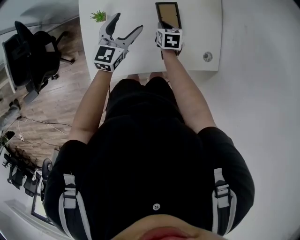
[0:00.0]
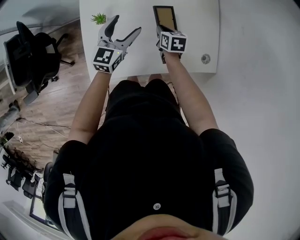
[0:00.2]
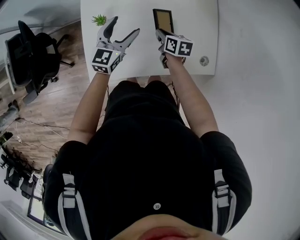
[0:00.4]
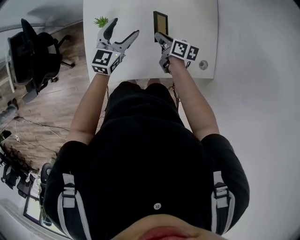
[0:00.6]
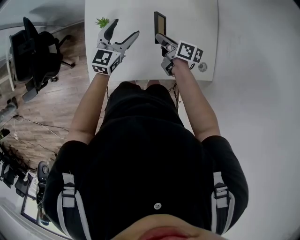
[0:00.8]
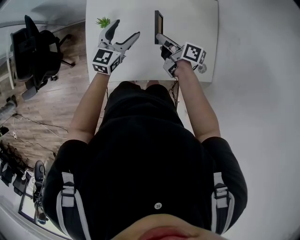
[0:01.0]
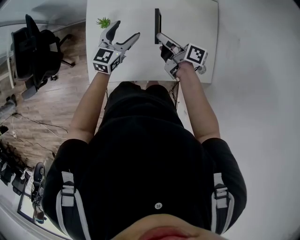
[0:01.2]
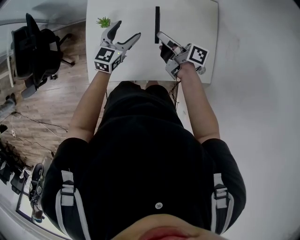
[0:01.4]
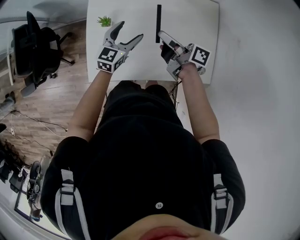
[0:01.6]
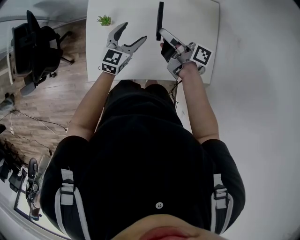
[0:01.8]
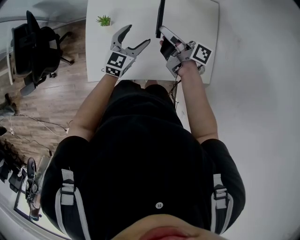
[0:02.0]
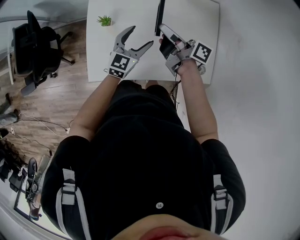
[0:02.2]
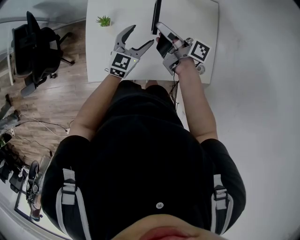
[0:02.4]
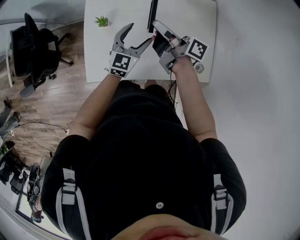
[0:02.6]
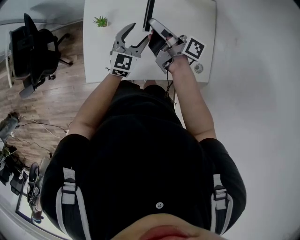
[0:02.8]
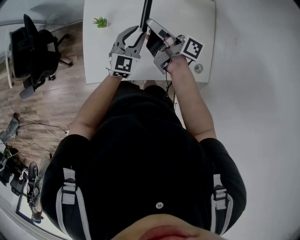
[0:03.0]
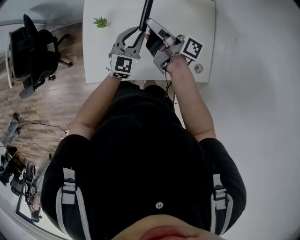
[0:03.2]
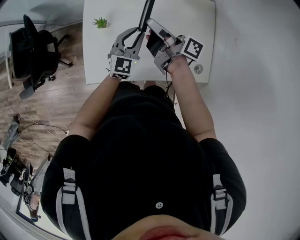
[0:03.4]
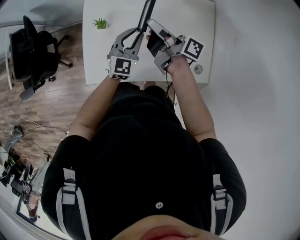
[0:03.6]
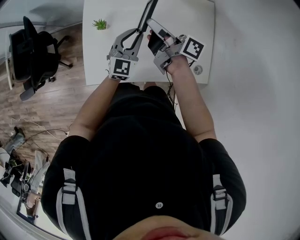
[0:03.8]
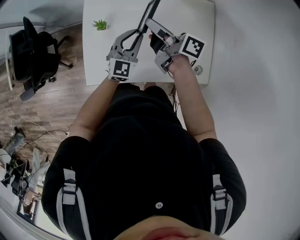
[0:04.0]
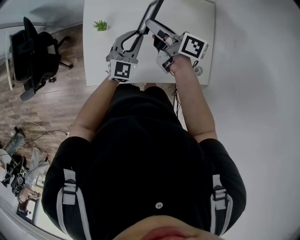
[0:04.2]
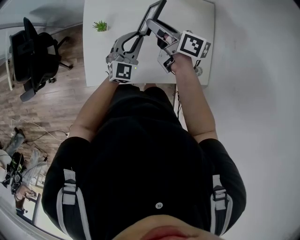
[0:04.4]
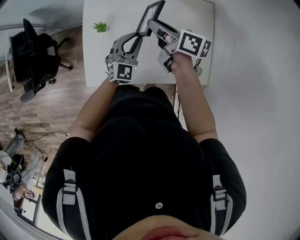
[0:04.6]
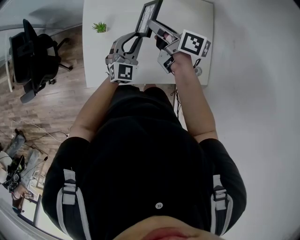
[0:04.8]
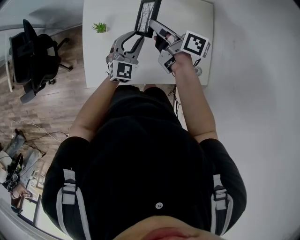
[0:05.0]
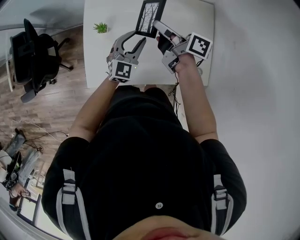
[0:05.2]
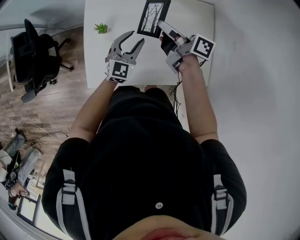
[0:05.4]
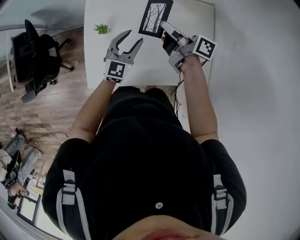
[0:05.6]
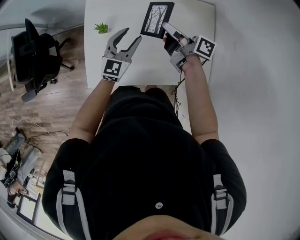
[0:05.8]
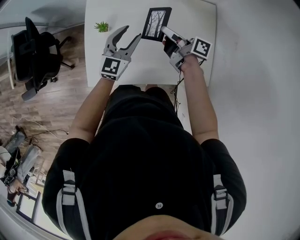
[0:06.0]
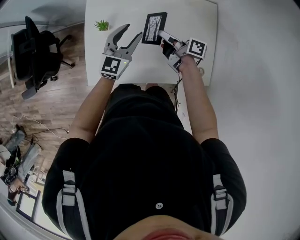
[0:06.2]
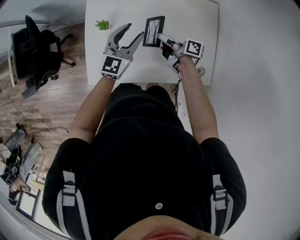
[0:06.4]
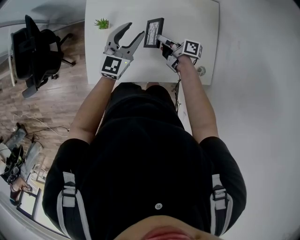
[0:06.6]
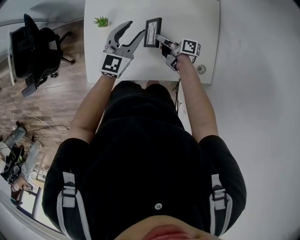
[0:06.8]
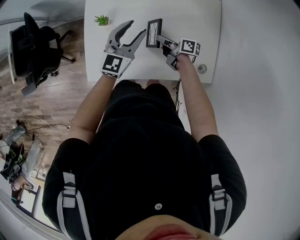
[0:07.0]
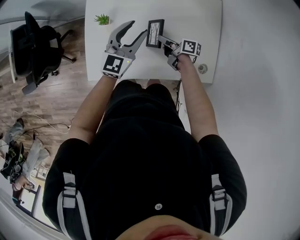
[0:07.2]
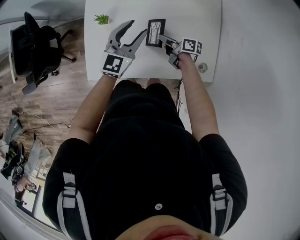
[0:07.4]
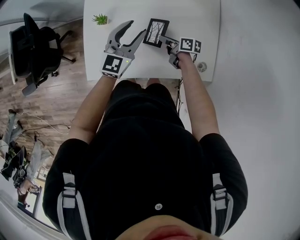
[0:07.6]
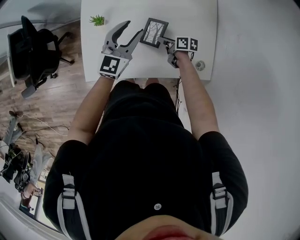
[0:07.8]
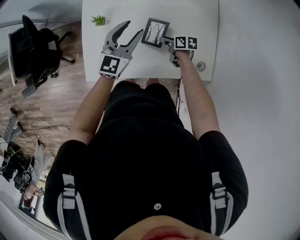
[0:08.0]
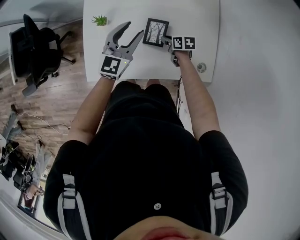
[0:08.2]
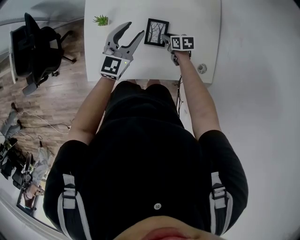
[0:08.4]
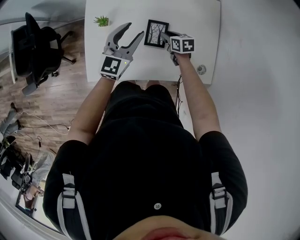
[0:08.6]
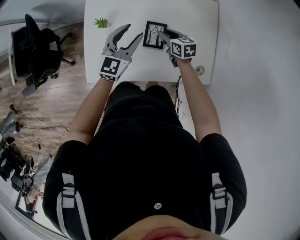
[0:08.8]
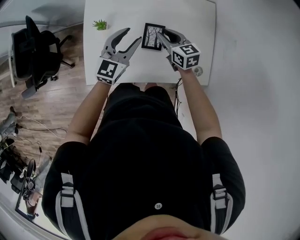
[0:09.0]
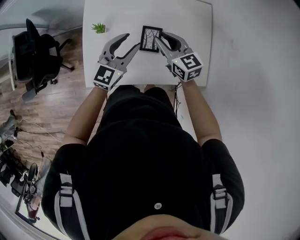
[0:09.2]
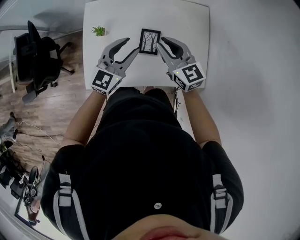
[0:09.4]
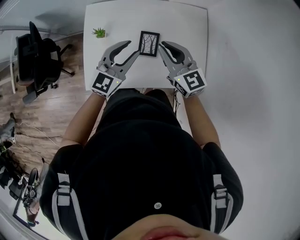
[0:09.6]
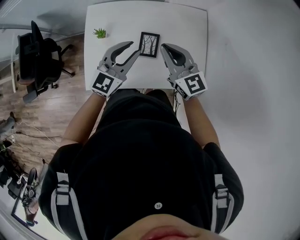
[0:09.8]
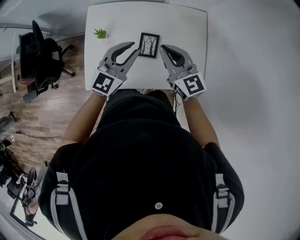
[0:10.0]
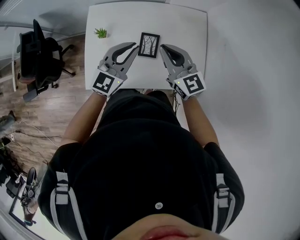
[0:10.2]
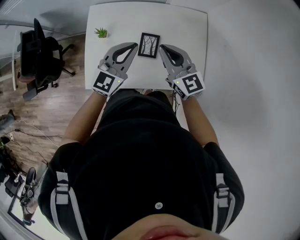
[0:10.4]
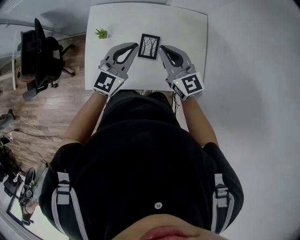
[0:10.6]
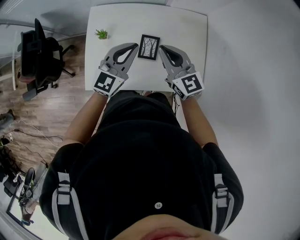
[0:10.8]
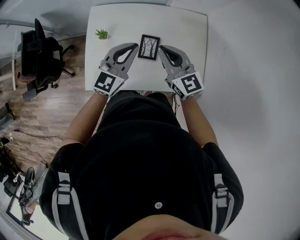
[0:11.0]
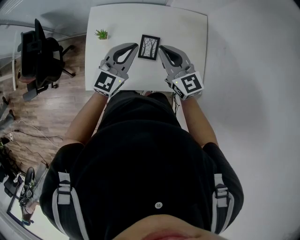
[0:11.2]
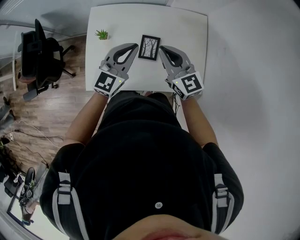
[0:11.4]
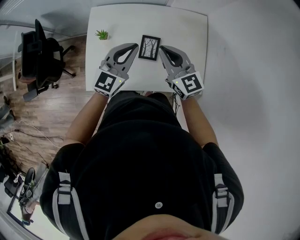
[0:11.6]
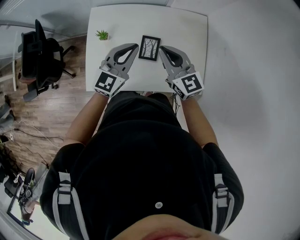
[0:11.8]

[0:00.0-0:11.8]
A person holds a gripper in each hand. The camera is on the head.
0:00.0 to 0:01.4: The right gripper is displaced upward by approximately 20 cm, and points its fingers roughly 50 degrees further upward.
0:01.4 to 0:03.0: The right gripper heads upward, covering some 5 cm. The left gripper heads to the right, covering some 5 cm, and closes its fingers.
0:03.0 to 0:04.4: The right gripper turns by about 30 degrees.
0:04.4 to 0:06.0: The right gripper heads downward and to the right, covering about 10 cm. The left gripper opens up.
0:06.0 to 0:07.4: The right gripper moves downward, about 15 cm.
0:07.4 to 0:08.8: The right gripper shifts by approximately 5 cm, and rotates approximately 40 degrees.
0:08.8 to 0:10.4: The left gripper moves upward and backward, about 10 cm, and closes up, while the right gripper shifts about 25 cm upward, and points its fingers roughly 30 degrees further upward.
0:10.4 to 0:11.8: Both grippers stay put.

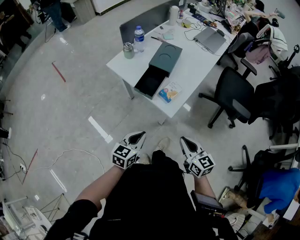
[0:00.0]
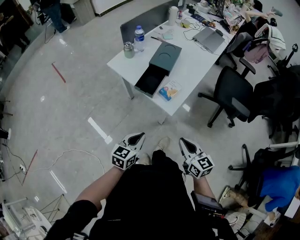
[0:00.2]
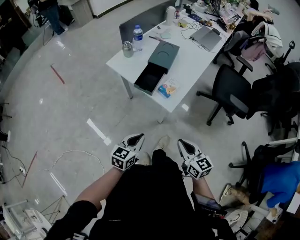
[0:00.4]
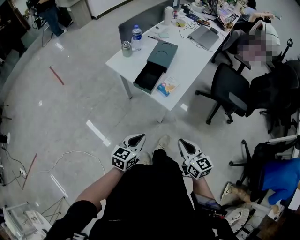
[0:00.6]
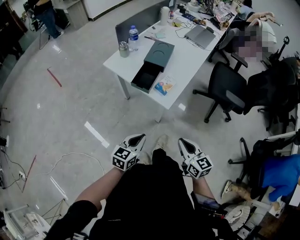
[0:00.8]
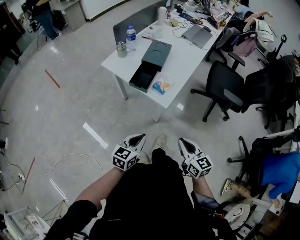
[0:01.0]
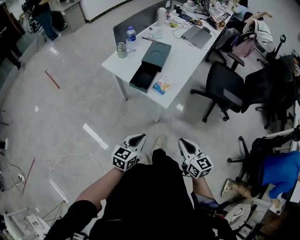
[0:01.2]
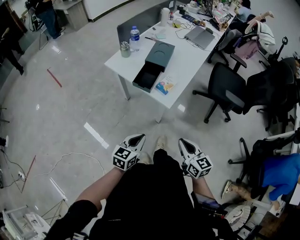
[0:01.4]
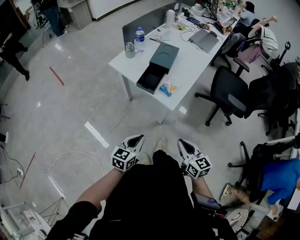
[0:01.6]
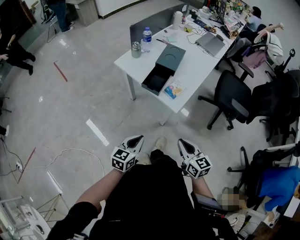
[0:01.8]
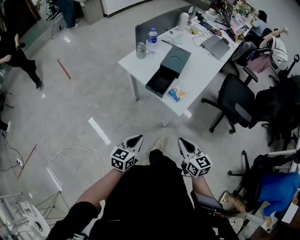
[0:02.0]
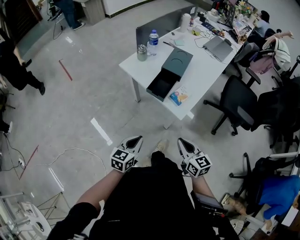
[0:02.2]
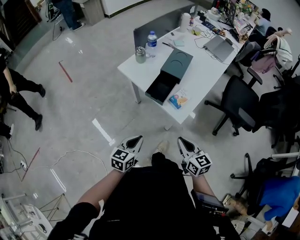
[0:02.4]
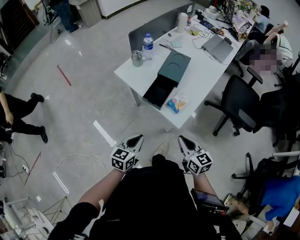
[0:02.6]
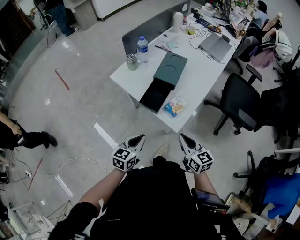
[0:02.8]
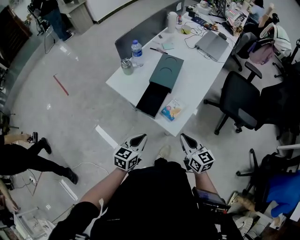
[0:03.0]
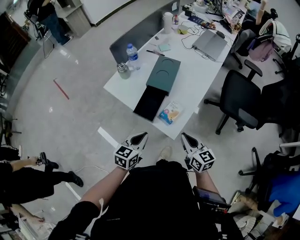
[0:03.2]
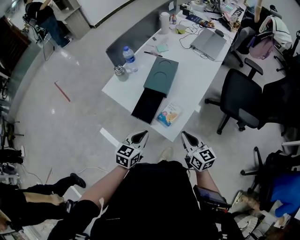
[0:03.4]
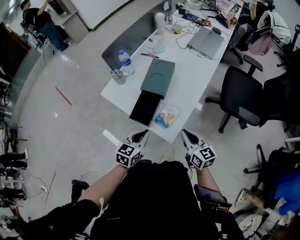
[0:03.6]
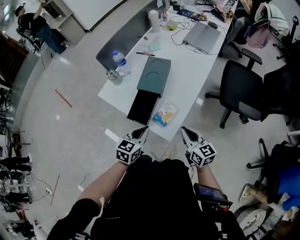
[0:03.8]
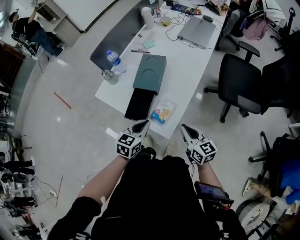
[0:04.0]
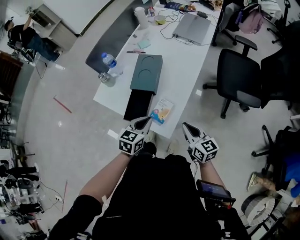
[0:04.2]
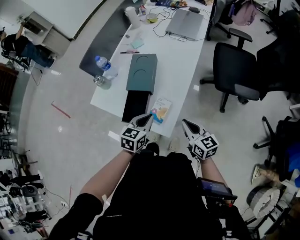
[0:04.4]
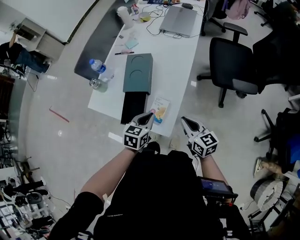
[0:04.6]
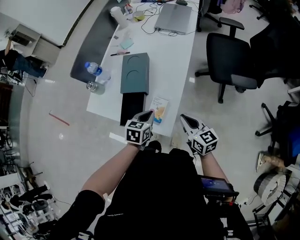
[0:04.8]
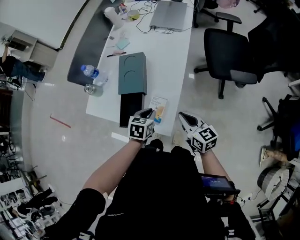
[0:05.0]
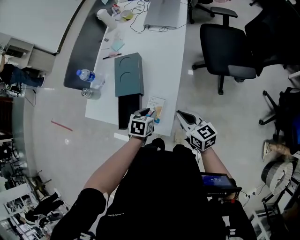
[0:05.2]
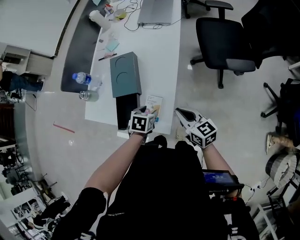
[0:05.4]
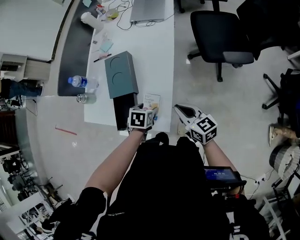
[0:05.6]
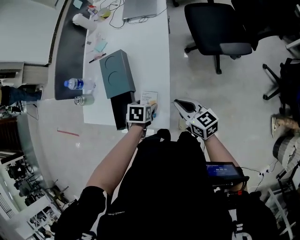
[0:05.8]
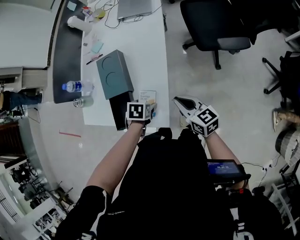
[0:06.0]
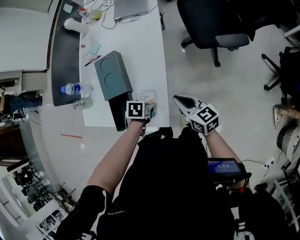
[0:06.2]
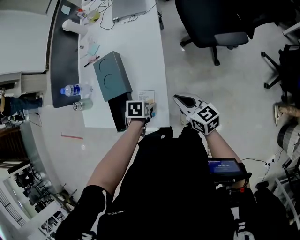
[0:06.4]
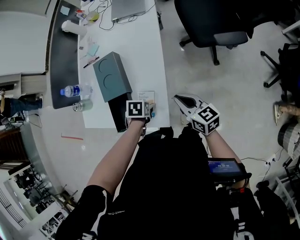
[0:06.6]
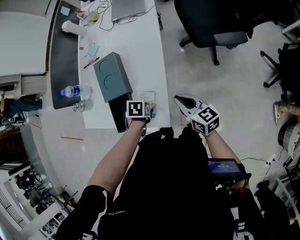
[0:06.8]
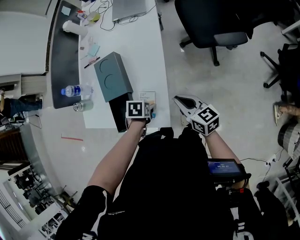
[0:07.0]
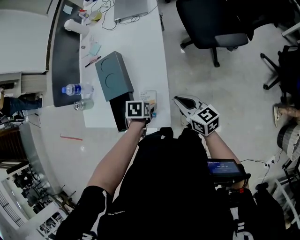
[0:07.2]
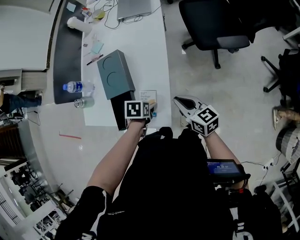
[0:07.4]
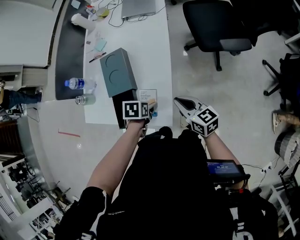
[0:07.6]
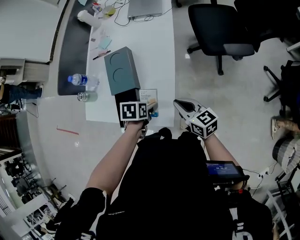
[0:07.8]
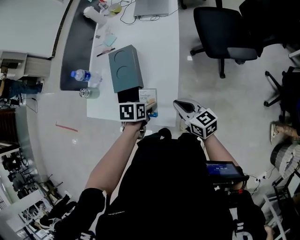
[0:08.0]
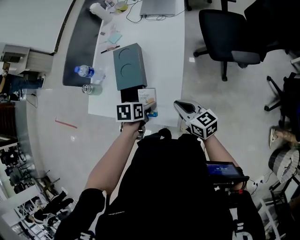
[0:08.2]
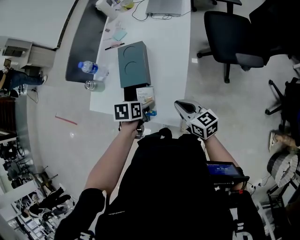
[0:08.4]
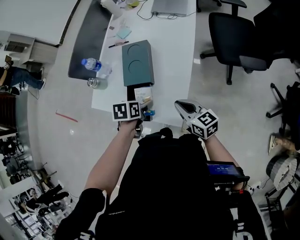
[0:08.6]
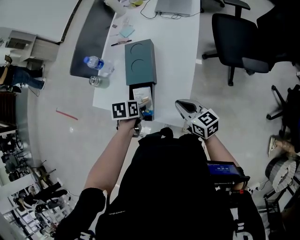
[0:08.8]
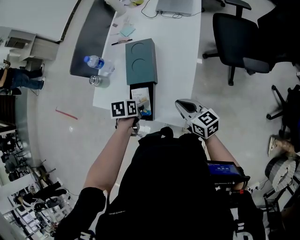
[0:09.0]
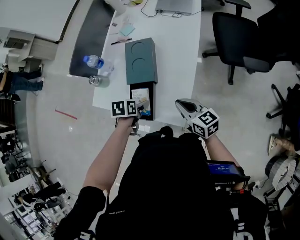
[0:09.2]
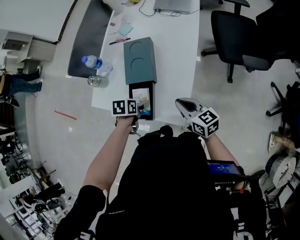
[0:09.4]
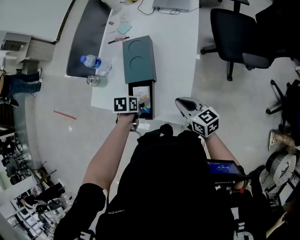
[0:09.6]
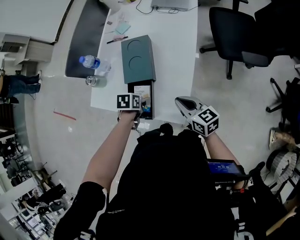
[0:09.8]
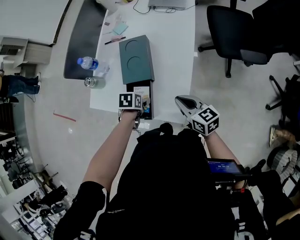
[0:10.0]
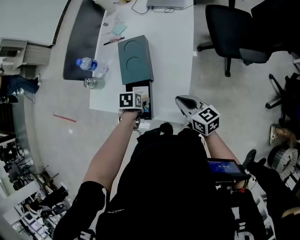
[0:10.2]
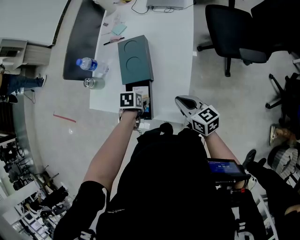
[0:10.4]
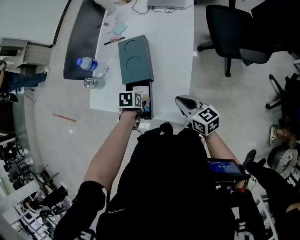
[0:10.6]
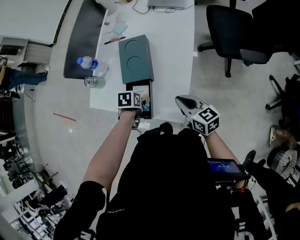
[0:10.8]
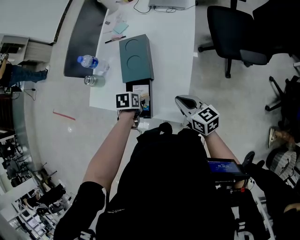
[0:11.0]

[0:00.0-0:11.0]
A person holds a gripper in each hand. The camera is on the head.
0:00.0 to 0:01.6: Both grippers move backward, approximately 10 cm.
0:01.6 to 0:03.2: Both grippers move forward, some 20 cm.
0:03.2 to 0:04.8: The left gripper shifts some 15 cm forward and to the right, and swivels about 20 degrees. Meanwhile the right gripper travels forward and to the right by about 10 cm.
0:04.8 to 0:06.2: The left gripper shifts about 10 cm downward, tips its fingers downward by approximately 30 degrees, and opens its fingers.
0:06.2 to 0:07.8: The left gripper ends up roughly 5 cm from where it was.
0:07.8 to 0:09.4: The right gripper moves to the left, roughly 5 cm. Meanwhile the left gripper is displaced to the left by approximately 15 cm.
0:09.4 to 0:11.0: The grippers move only a little.

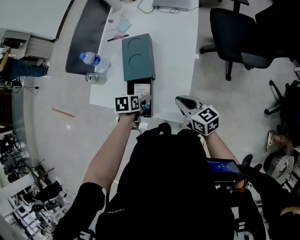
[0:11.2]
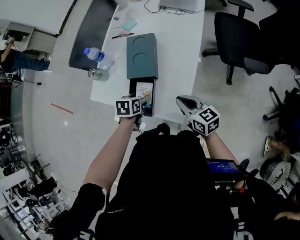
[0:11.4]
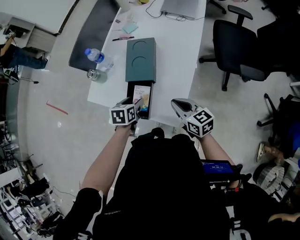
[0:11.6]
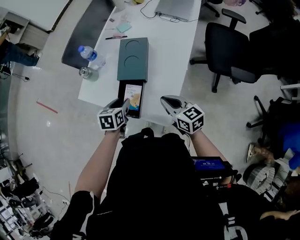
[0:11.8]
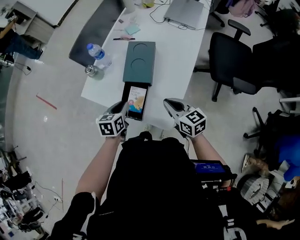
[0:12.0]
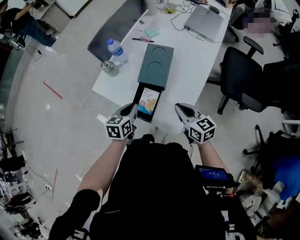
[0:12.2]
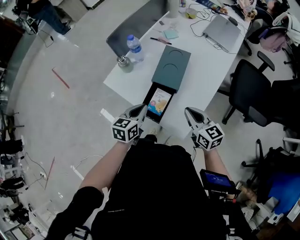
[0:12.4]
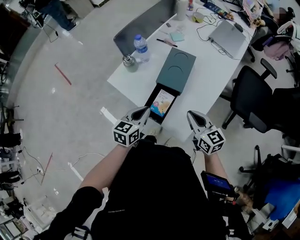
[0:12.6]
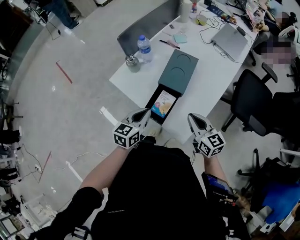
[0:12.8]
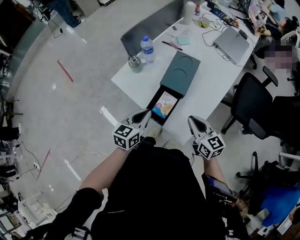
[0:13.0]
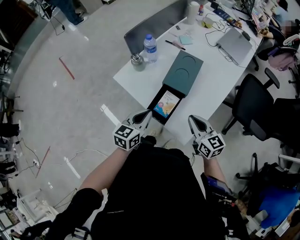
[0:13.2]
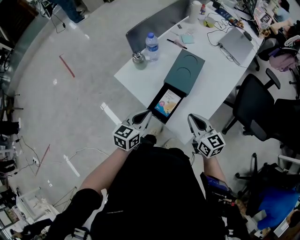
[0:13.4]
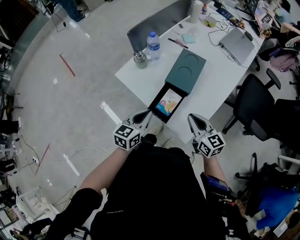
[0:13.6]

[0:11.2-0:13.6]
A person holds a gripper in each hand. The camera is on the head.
0:11.2 to 0:12.4: The left gripper moves upward and to the left, approximately 10 cm, angles its fingers upward, by roughly 30 degrees, and closes; the right gripper ends up approximately 5 cm from where it was.
0:12.4 to 0:13.6: The left gripper moves approximately 5 cm.
